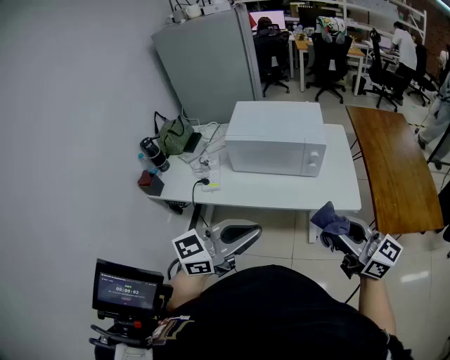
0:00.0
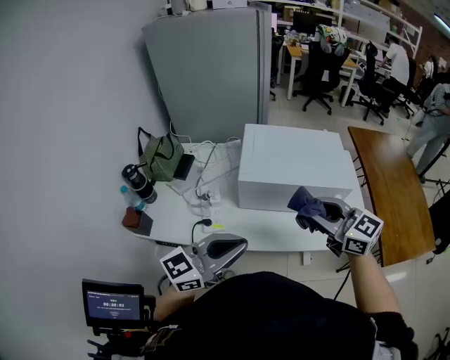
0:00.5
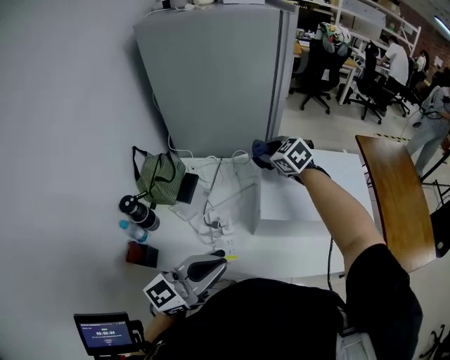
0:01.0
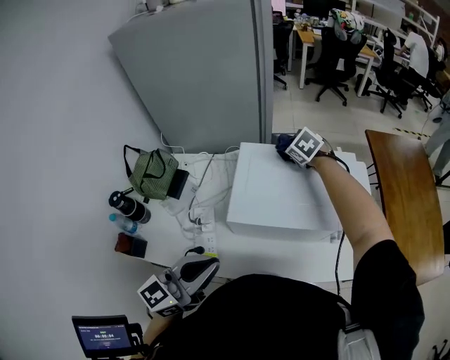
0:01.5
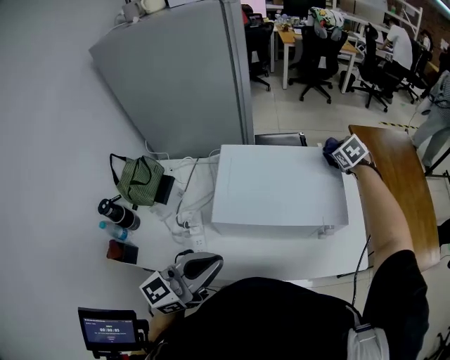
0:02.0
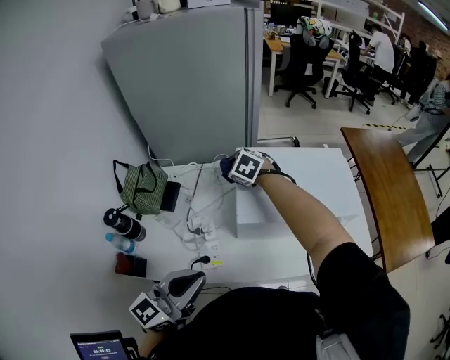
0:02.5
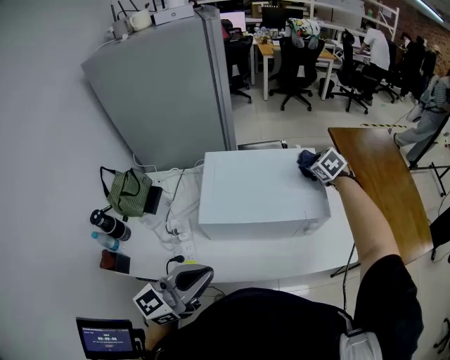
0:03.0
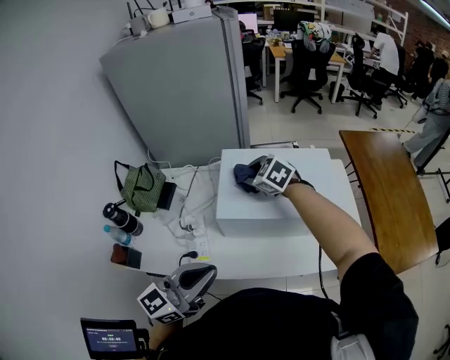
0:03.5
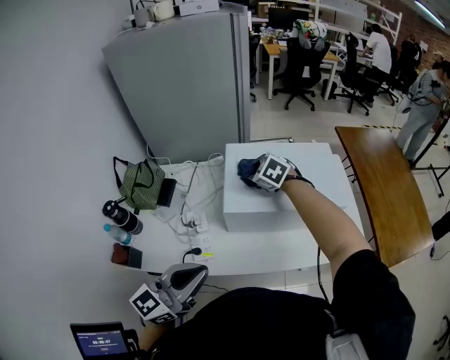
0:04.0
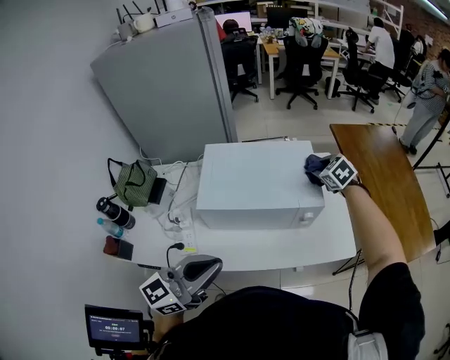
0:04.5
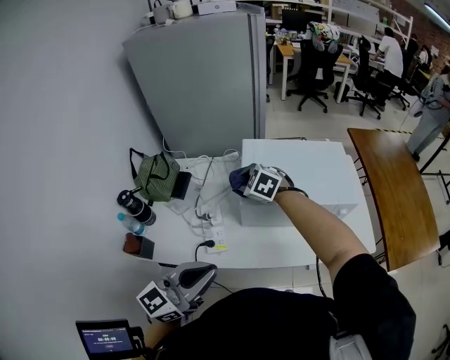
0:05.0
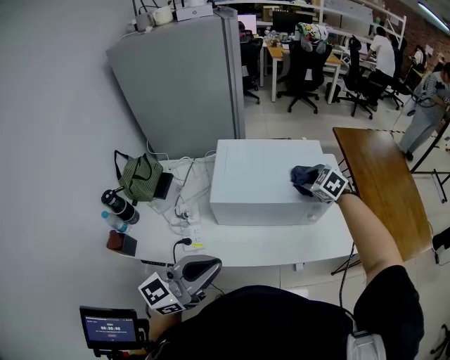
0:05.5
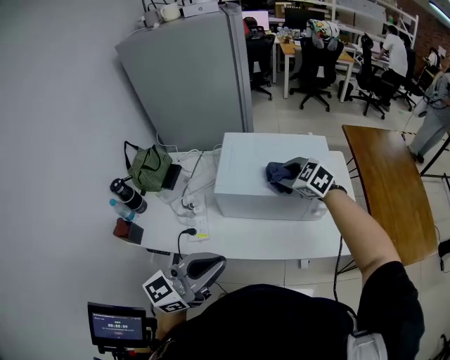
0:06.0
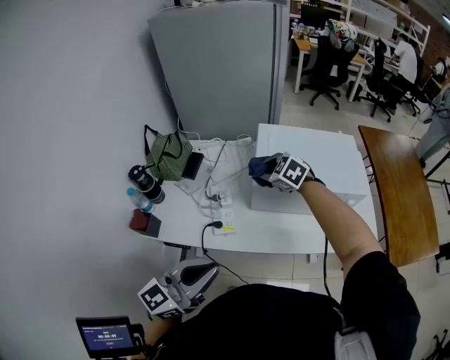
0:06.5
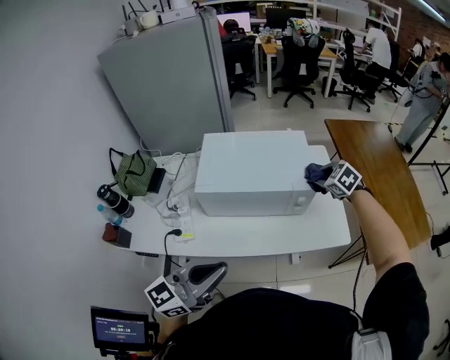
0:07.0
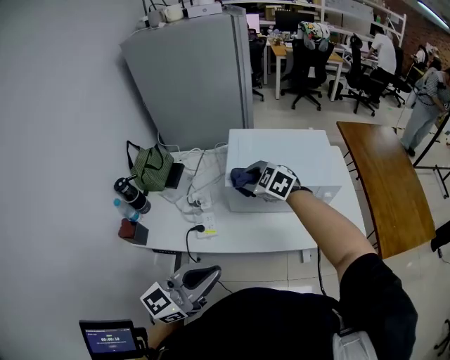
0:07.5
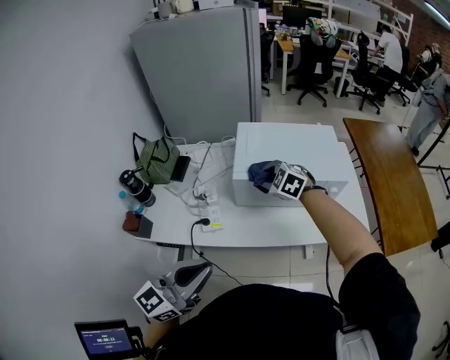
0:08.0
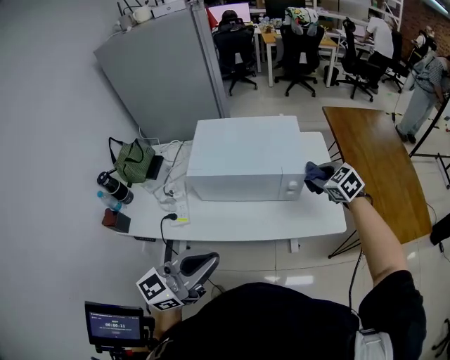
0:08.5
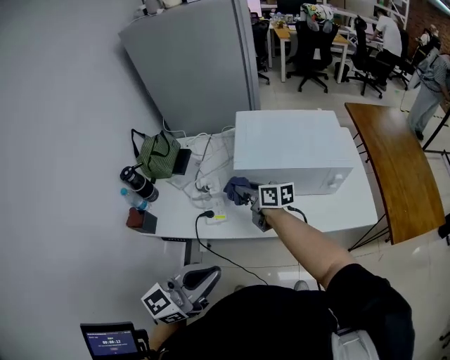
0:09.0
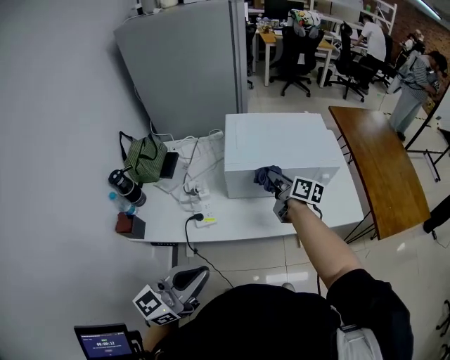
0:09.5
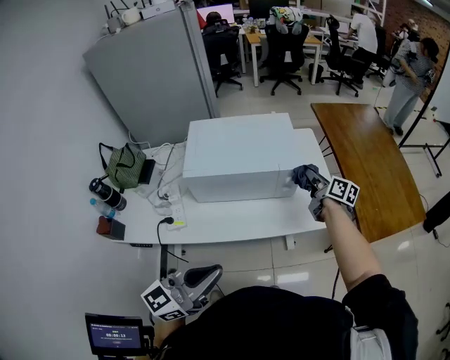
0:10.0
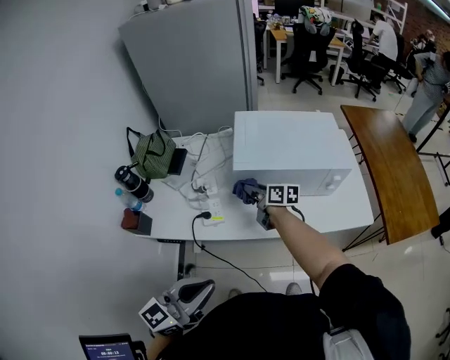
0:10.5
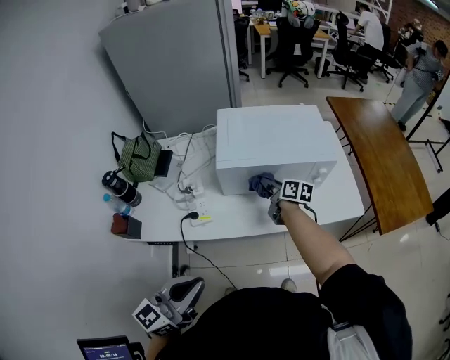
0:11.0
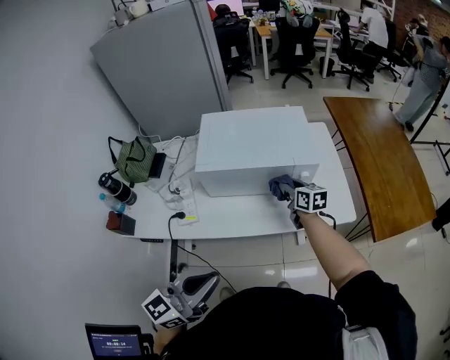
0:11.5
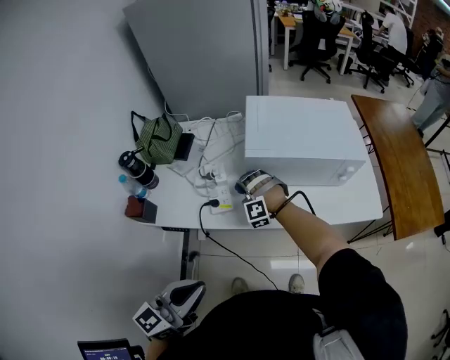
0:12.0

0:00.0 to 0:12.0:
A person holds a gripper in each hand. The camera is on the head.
0:00.0 to 0:02.0: The right gripper heads forward, covering about 60 cm, and angles its fingers downward, by about 60 degrees, while the left gripper moves forward and to the left, some 35 cm.
0:02.0 to 0:04.0: The right gripper swings left and right, about 40 cm each way, with 2 reversals, and turns by some 30 degrees. Meanwhile the left gripper swings left and right, some 15 cm each way, with 2 reversals.
0:04.0 to 0:06.0: The left gripper goes left and right, roughly 15 cm each way, reversing 2 times. The right gripper swings left and right, approximately 40 cm each way, with 3 reversals.
0:06.0 to 0:08.0: The right gripper moves left and right over approximately 40 cm, changing direction 3 times. Meanwhile the left gripper moves left and right over approximately 20 cm, changing direction 2 times.
0:08.0 to 0:10.0: The left gripper goes left and right, roughly 20 cm each way, reversing 2 times, while the right gripper moves left and right over approximately 40 cm, changing direction 2 times, and rolls clockwise, seen from behind, by about 80 degrees.
0:10.0 to 0:12.0: The right gripper swings left and right, about 50 cm each way, with 2 reversals, and rolls counterclockwise, seen from behind, by approximately 140 degrees, while the left gripper swings left and right, roughly 25 cm each way, with 2 reversals.

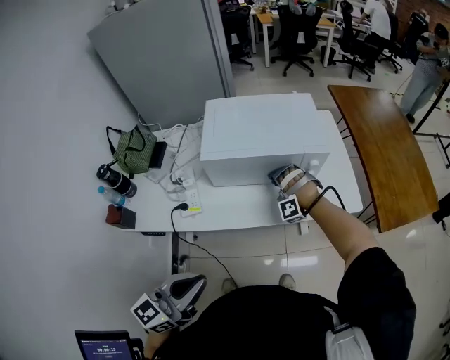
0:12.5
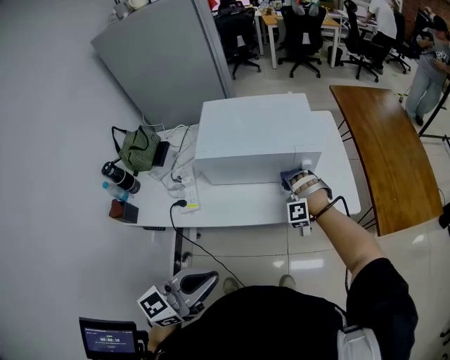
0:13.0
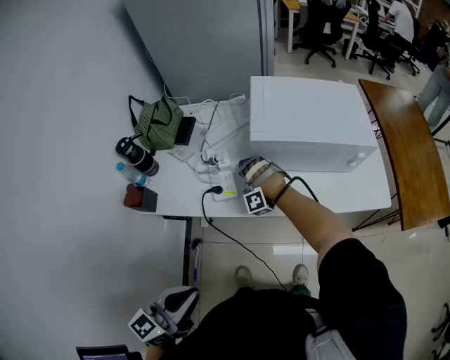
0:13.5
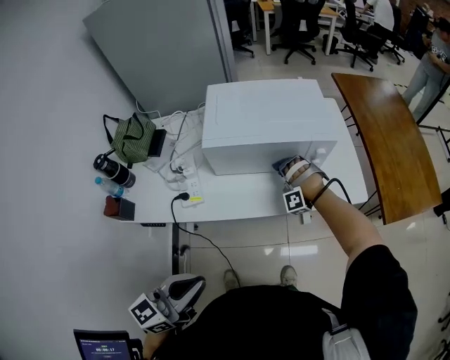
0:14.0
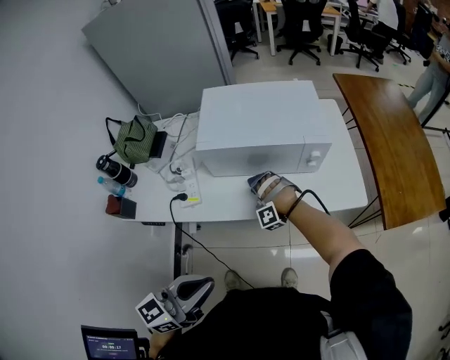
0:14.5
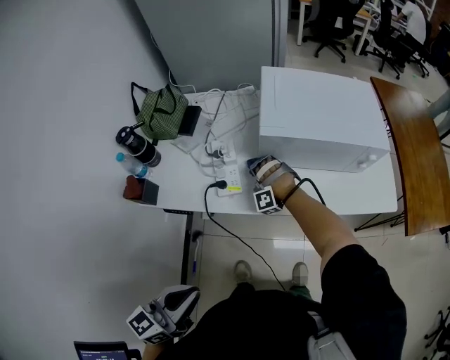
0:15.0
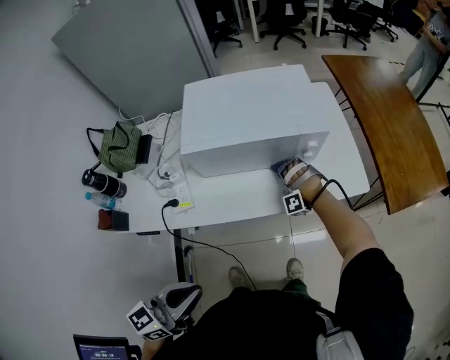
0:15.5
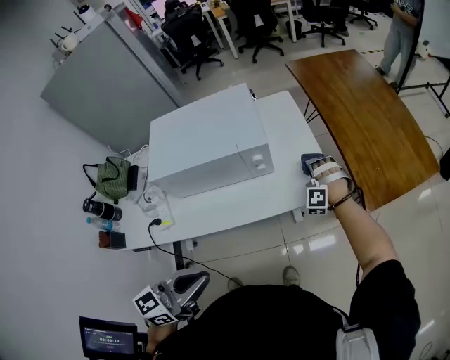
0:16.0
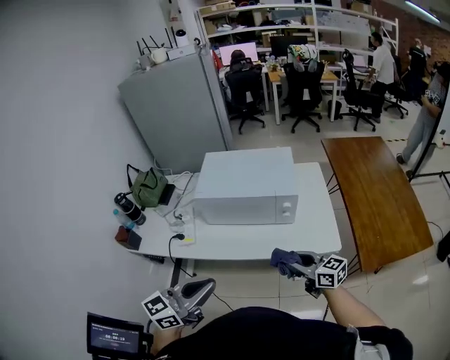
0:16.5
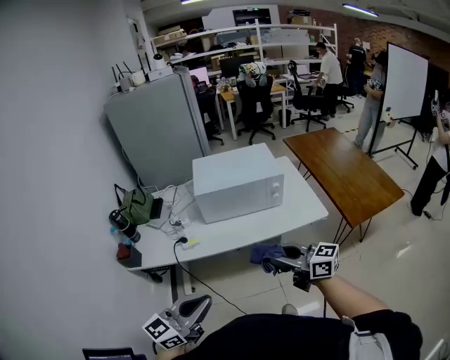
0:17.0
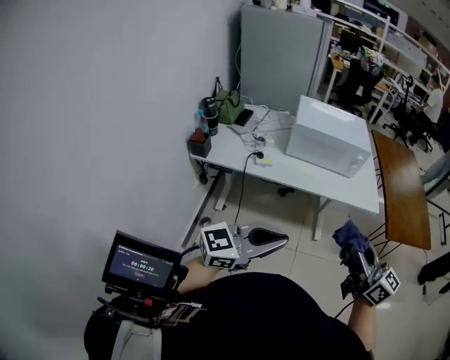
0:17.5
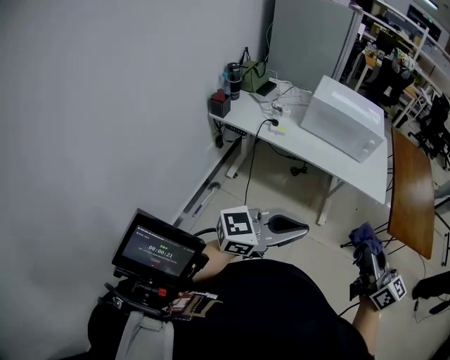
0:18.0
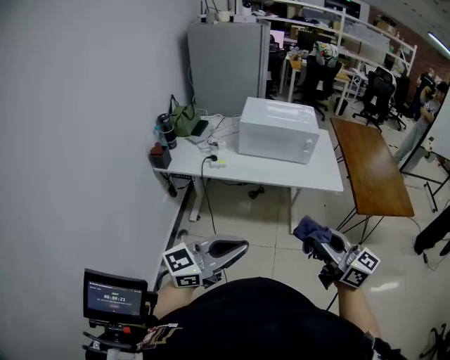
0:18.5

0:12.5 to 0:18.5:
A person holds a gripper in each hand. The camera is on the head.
0:12.5 to 0:14.5: The left gripper moves left and right over about 20 cm, changing direction 2 times, while the right gripper swings left and right, approximately 35 cm each way, with 3 reversals.
0:14.5 to 0:16.5: The right gripper changes place by roughly 35 cm, and rotates around the line of its fingers by roughly 110 degrees, clockwise from behind.
0:16.5 to 0:18.5: The left gripper is displaced backward by about 30 cm, while the right gripper moves backward and upward, roughly 40 cm.

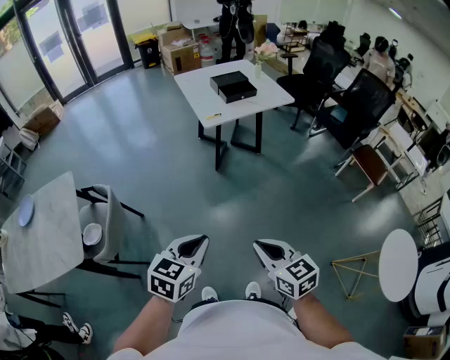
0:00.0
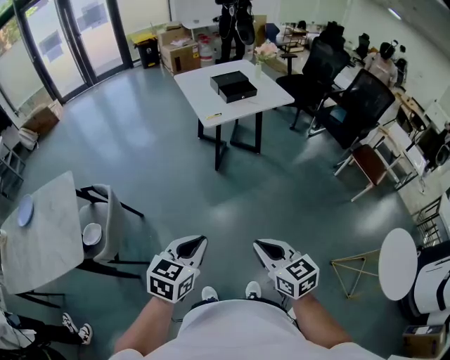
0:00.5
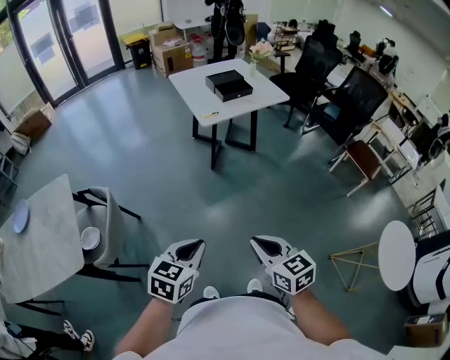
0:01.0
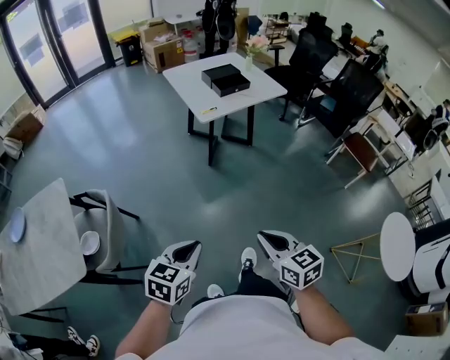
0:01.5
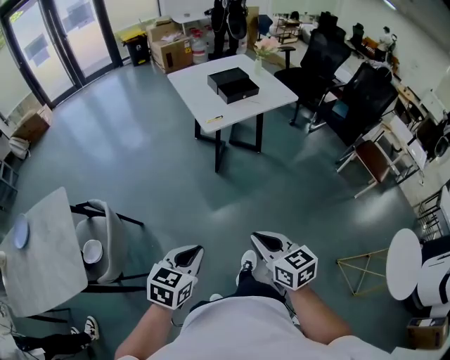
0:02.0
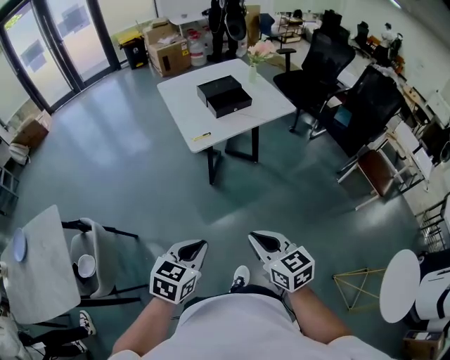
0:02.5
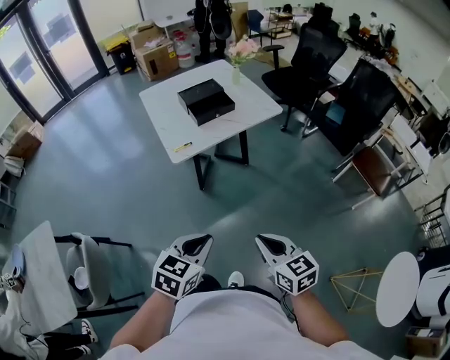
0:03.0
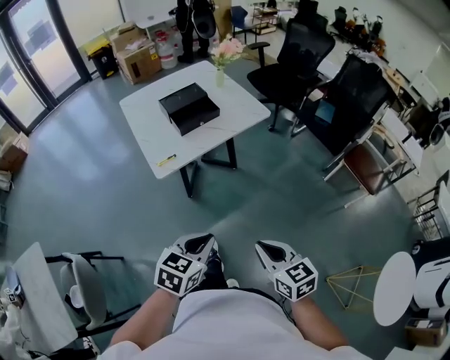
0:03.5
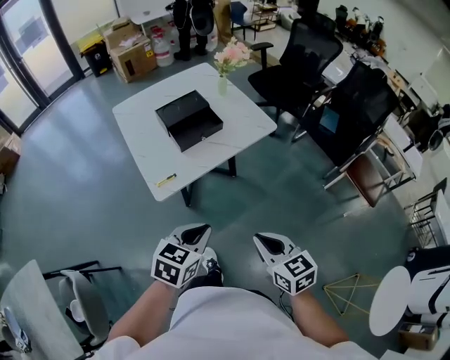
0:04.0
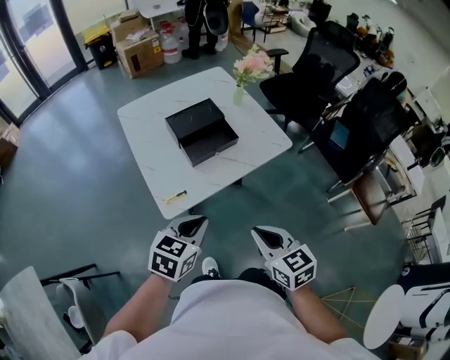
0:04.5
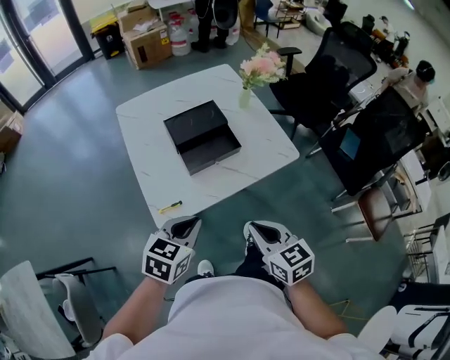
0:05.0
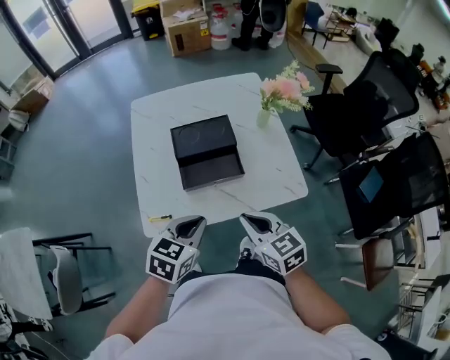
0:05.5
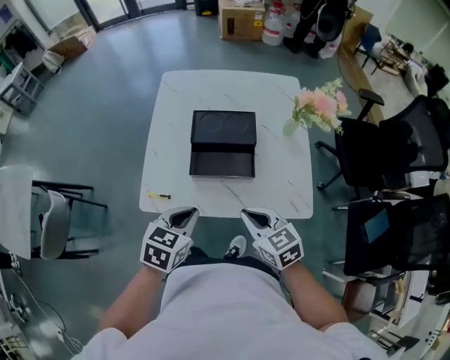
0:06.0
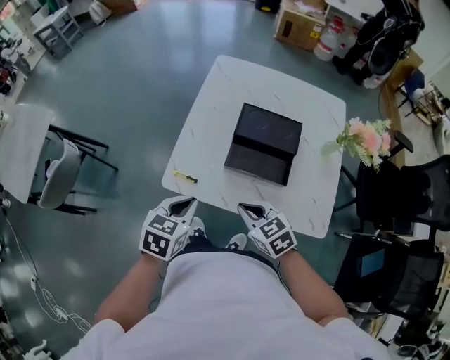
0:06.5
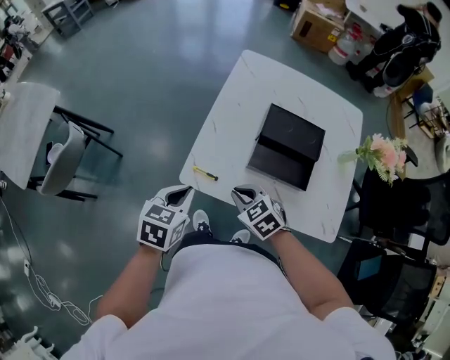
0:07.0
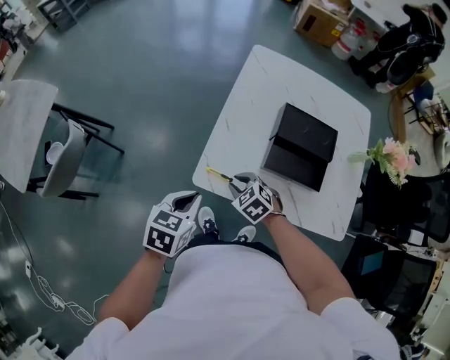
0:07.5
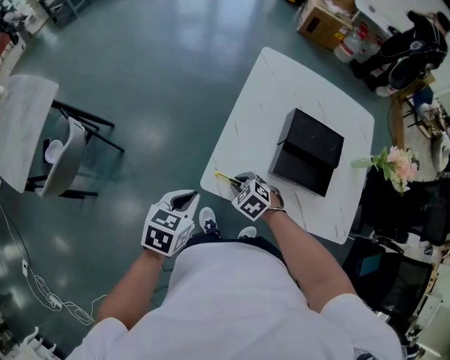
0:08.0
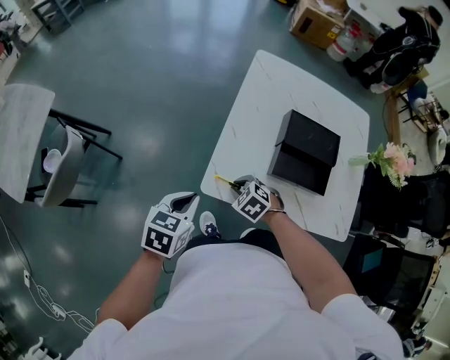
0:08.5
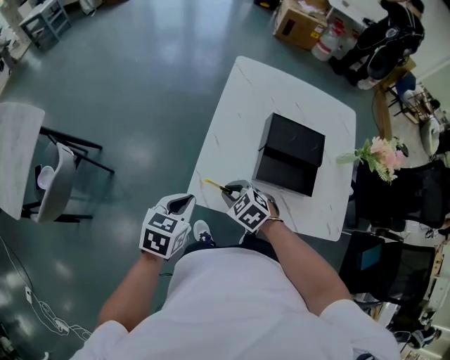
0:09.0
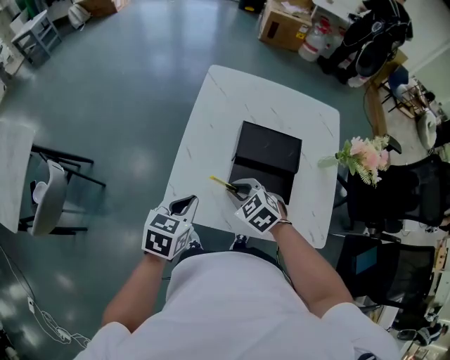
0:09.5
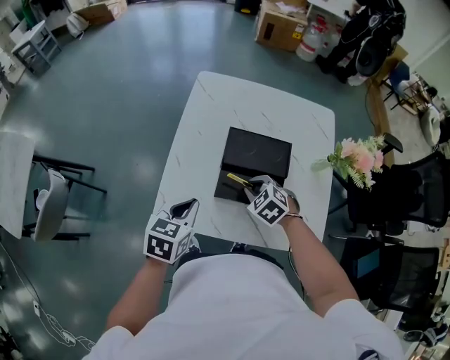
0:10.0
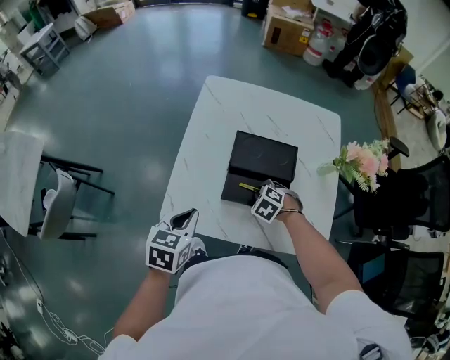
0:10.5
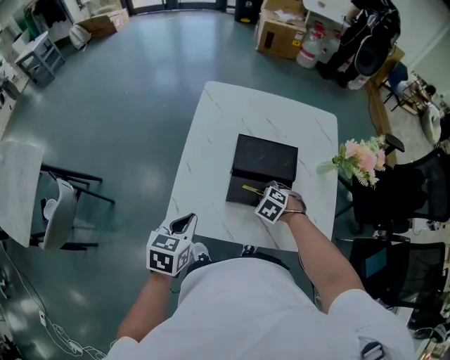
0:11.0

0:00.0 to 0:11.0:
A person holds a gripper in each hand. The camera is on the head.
0:00.0 to 0:02.0: The right gripper travels forward and to the left by roughly 15 cm. The left gripper is displaced forward, to the left and downward by some 10 cm.
0:02.0 to 0:03.5: The grippers both shift forward and to the right by approximately 35 cm.
0:03.5 to 0:05.5: The pair of grippers is taken forward, some 50 cm. The left gripper changes its angle by some 20 degrees. Meanwhile the right gripper changes its angle by some 30 degrees.
0:05.5 to 0:07.5: The right gripper changes place by about 30 cm, tips its fingers downward by approximately 30 degrees, and opens up, while the left gripper shifts by about 25 cm, and turns by about 40 degrees.
0:07.5 to 0:09.0: There are only small adjustments of the grippers.
0:09.0 to 0:11.0: The left gripper shifts by roughly 10 cm. Meanwhile the right gripper ends up roughly 25 cm from where it was, and swivels roughly 20 degrees.
